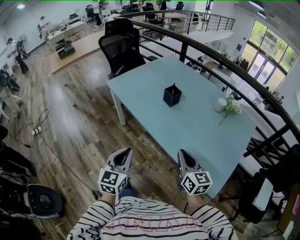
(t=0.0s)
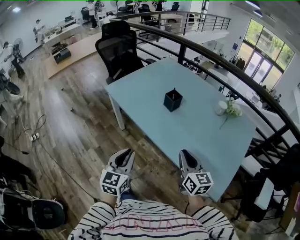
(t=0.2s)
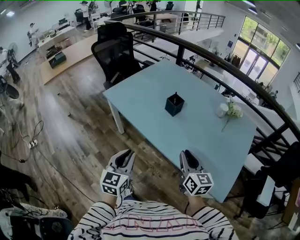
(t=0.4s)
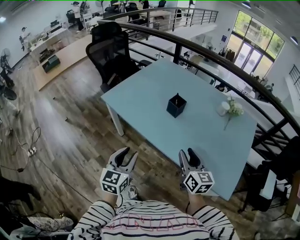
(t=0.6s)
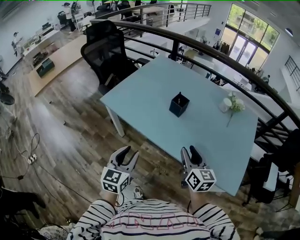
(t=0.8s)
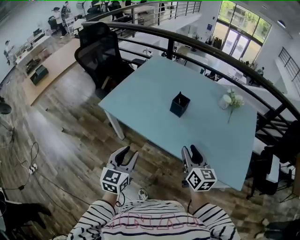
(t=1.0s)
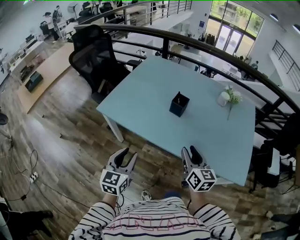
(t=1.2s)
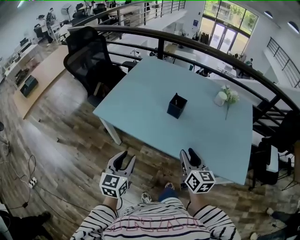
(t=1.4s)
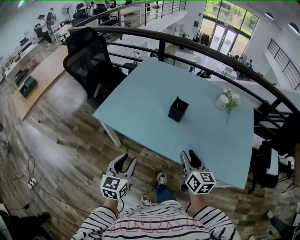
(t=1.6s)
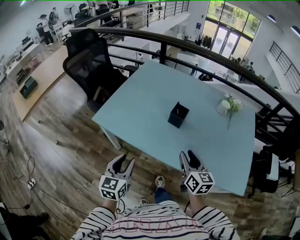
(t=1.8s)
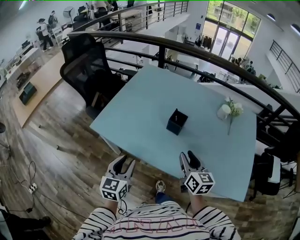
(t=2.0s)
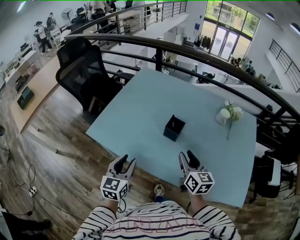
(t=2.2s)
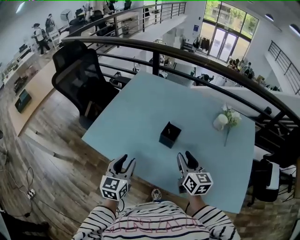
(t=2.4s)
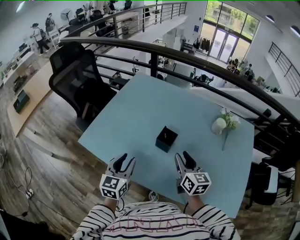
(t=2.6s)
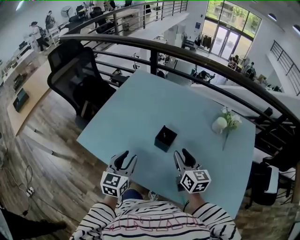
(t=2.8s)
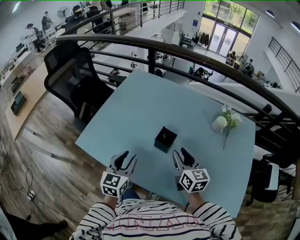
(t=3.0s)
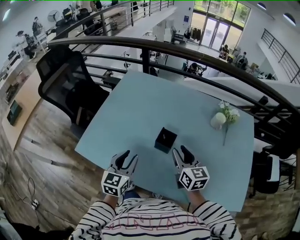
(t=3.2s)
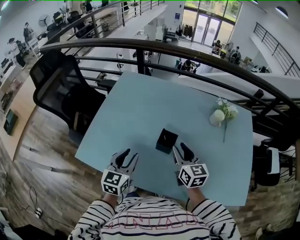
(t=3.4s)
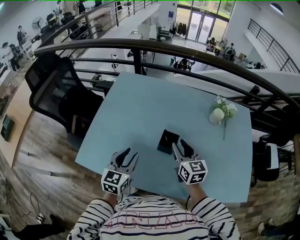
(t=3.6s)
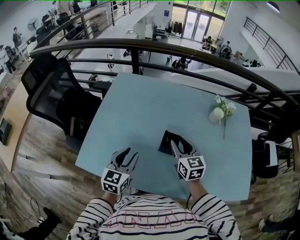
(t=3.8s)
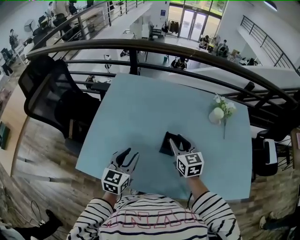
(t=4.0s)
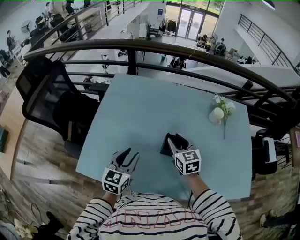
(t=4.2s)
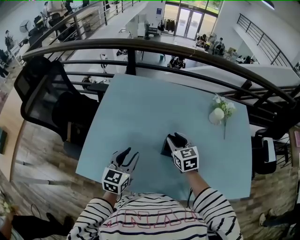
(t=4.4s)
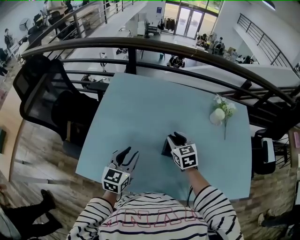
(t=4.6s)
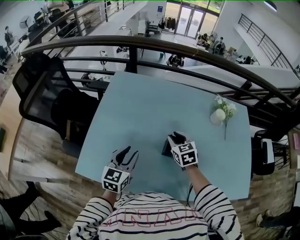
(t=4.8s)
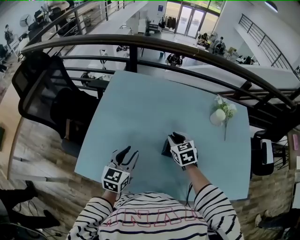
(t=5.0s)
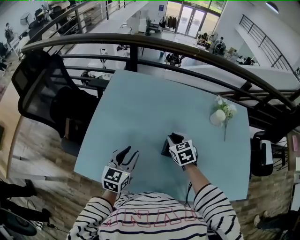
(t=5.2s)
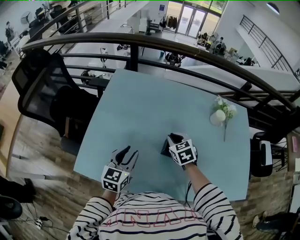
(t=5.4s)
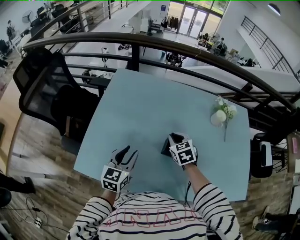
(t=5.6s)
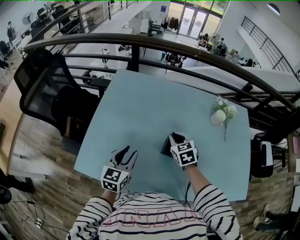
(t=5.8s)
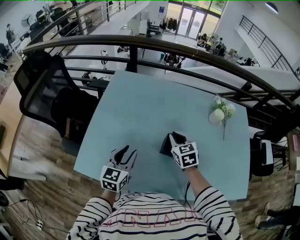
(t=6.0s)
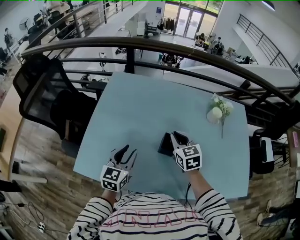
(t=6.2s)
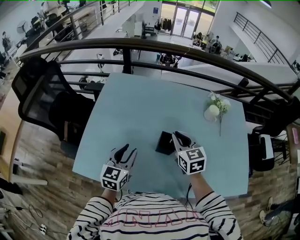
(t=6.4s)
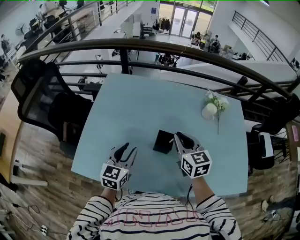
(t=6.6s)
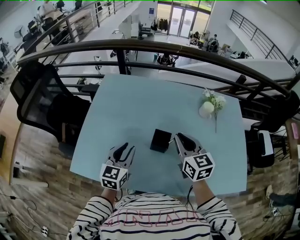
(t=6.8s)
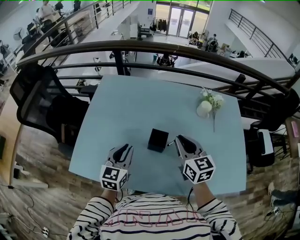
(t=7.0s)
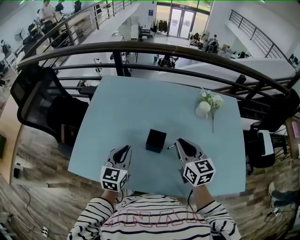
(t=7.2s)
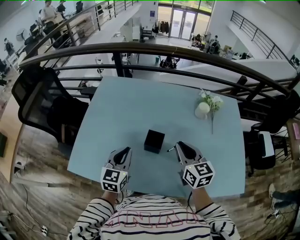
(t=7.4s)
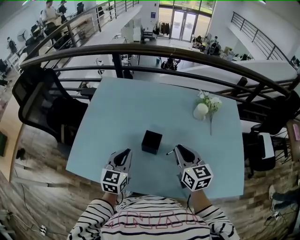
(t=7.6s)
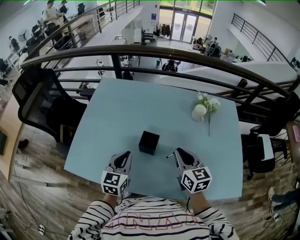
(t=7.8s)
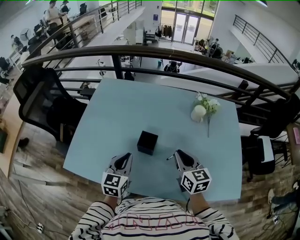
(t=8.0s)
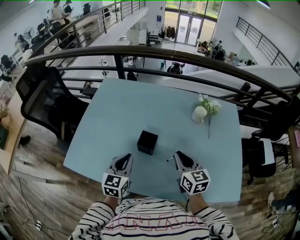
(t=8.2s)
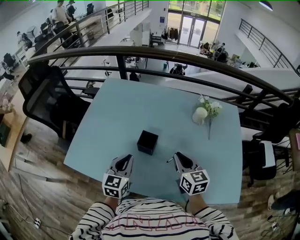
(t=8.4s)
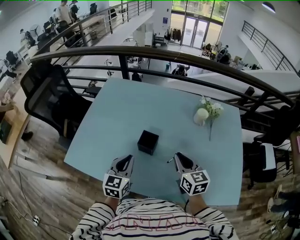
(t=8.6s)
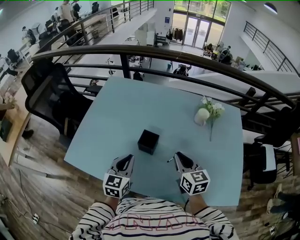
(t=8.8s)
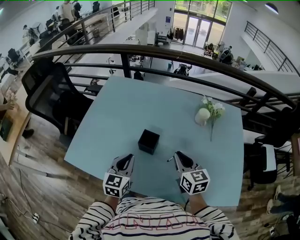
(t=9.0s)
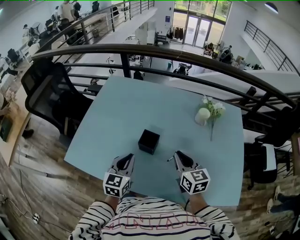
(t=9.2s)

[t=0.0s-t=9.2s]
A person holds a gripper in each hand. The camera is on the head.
t=0.0s to t=1.6s: Both grippers travel together to the left and forward, roughly 25 cm. The right gripper turns by roughly 30 degrees, and opens, while the left gripper changes its angle by about 20 degrees, and opens.
t=1.6s to t=3.0s: Both grippers travel together forward, about 25 cm.
t=3.0s to t=4.6s: The right gripper moves forward, to the left and downward, about 15 cm, and turns by about 30 degrees. The left gripper shifts about 15 cm forward and to the left.
t=4.6s to t=6.2s: The right gripper closes its fingers.
t=6.2s to t=7.6s: The left gripper travels to the right by roughly 10 cm, and closes its fingers; the right gripper heads to the right and backward, covering roughly 15 cm.
t=7.6s to t=9.2s: The left gripper ends up approximately 5 cm from where it was.

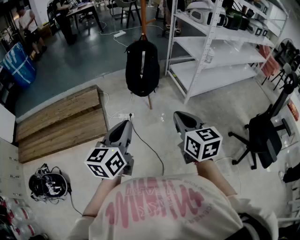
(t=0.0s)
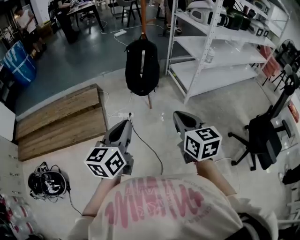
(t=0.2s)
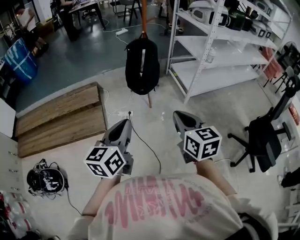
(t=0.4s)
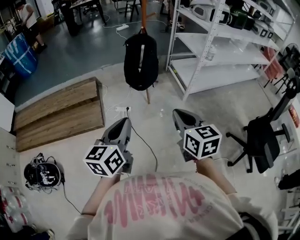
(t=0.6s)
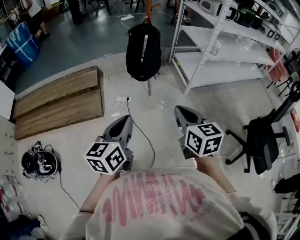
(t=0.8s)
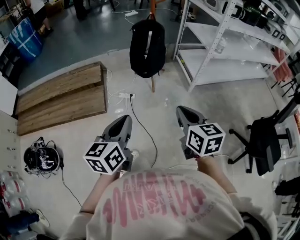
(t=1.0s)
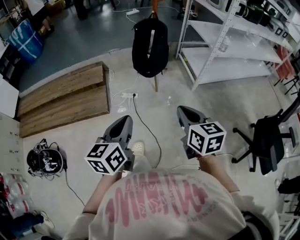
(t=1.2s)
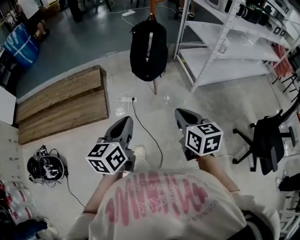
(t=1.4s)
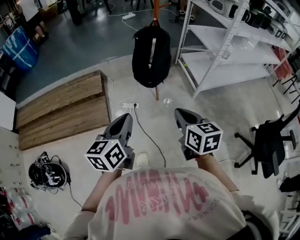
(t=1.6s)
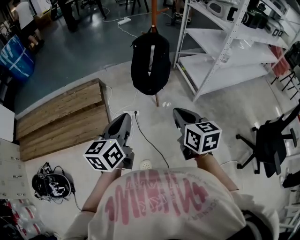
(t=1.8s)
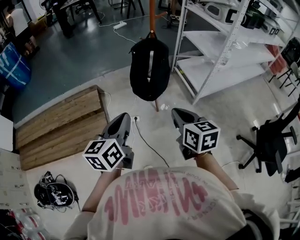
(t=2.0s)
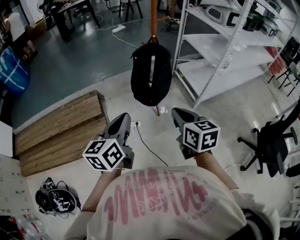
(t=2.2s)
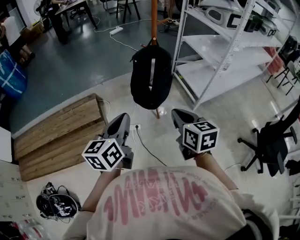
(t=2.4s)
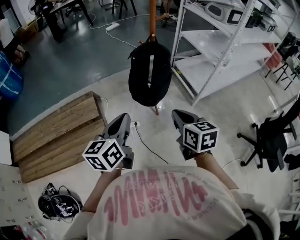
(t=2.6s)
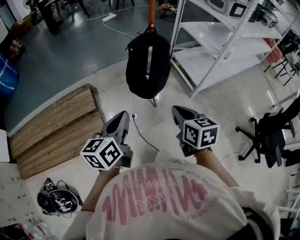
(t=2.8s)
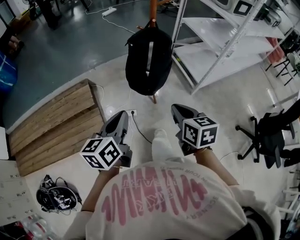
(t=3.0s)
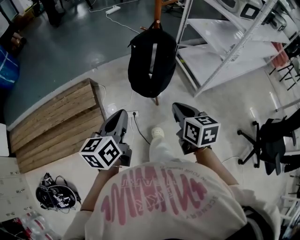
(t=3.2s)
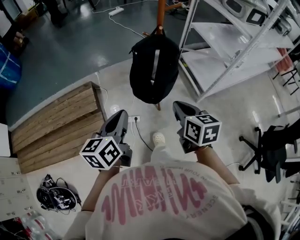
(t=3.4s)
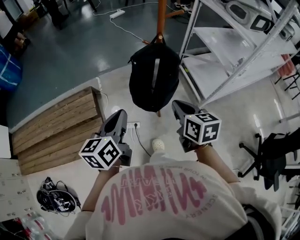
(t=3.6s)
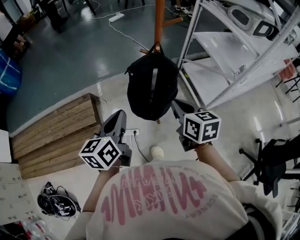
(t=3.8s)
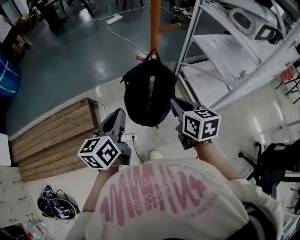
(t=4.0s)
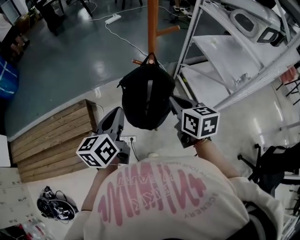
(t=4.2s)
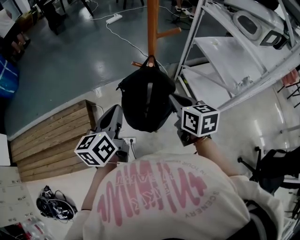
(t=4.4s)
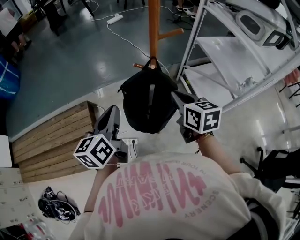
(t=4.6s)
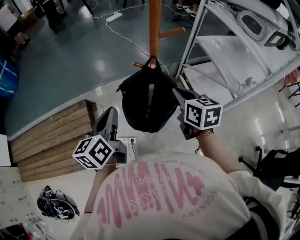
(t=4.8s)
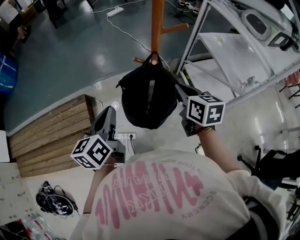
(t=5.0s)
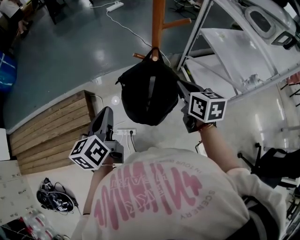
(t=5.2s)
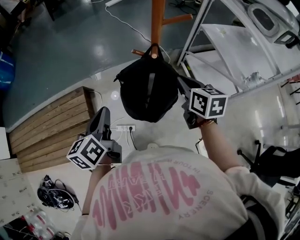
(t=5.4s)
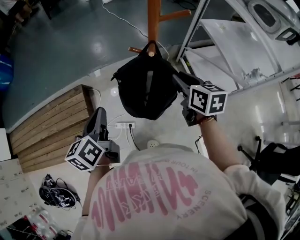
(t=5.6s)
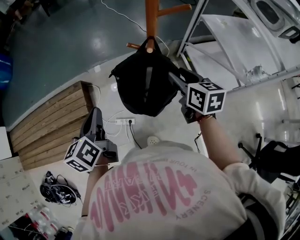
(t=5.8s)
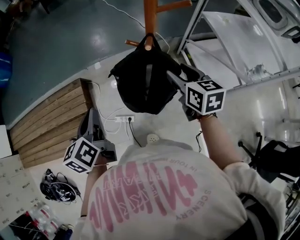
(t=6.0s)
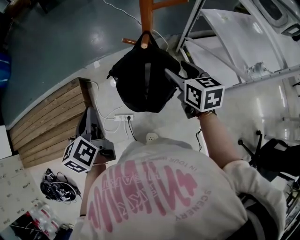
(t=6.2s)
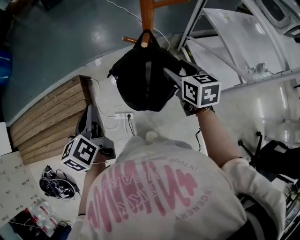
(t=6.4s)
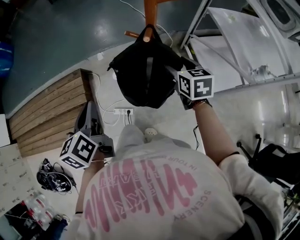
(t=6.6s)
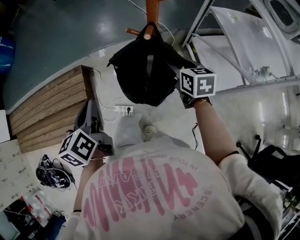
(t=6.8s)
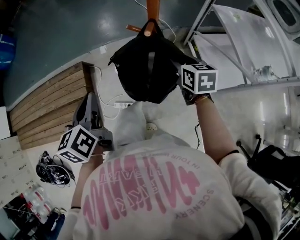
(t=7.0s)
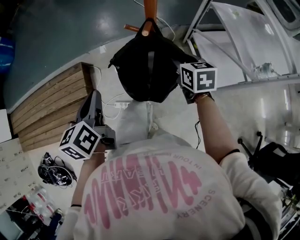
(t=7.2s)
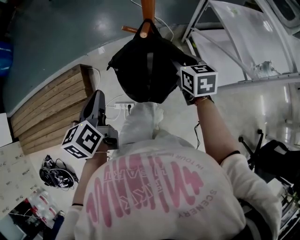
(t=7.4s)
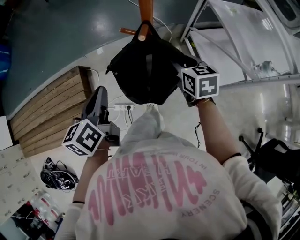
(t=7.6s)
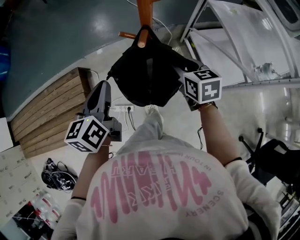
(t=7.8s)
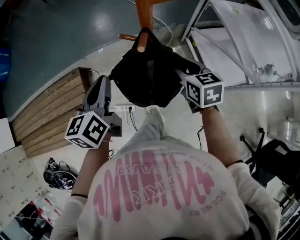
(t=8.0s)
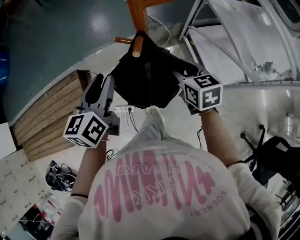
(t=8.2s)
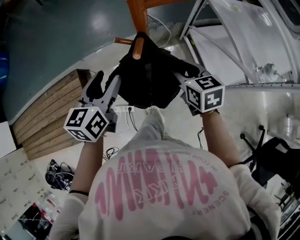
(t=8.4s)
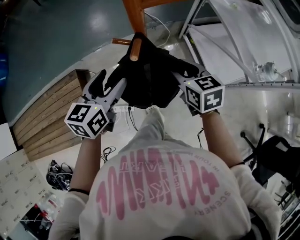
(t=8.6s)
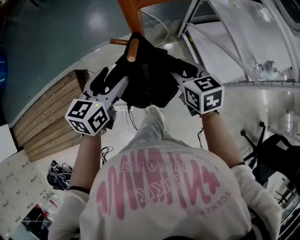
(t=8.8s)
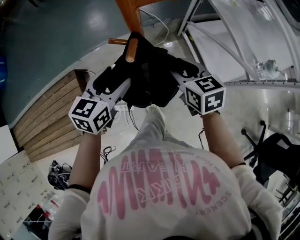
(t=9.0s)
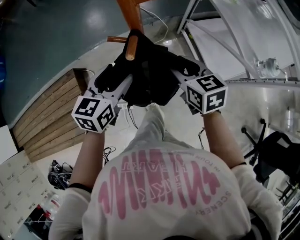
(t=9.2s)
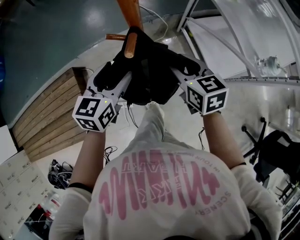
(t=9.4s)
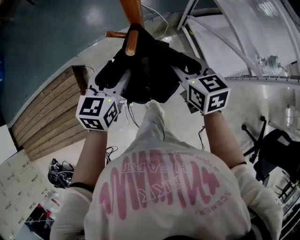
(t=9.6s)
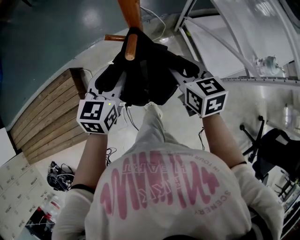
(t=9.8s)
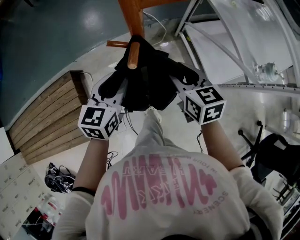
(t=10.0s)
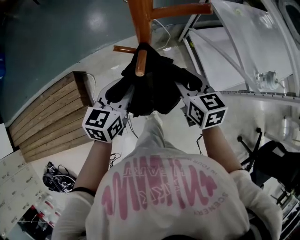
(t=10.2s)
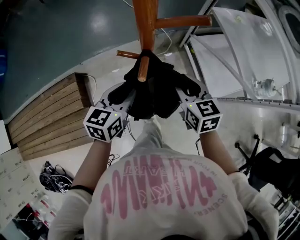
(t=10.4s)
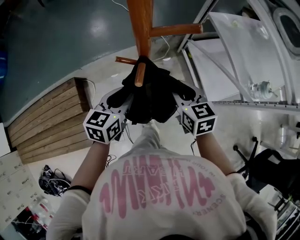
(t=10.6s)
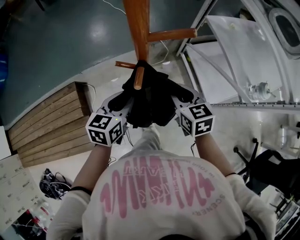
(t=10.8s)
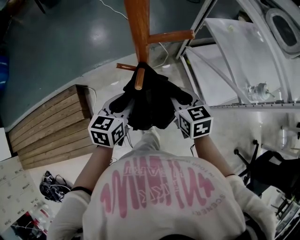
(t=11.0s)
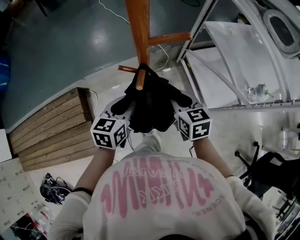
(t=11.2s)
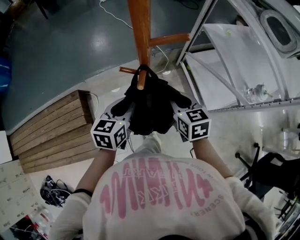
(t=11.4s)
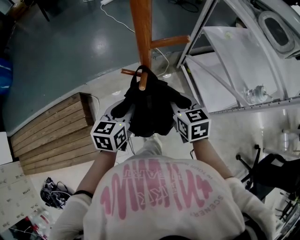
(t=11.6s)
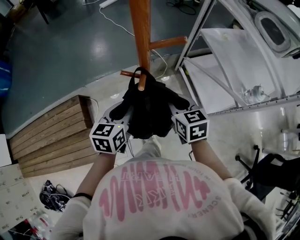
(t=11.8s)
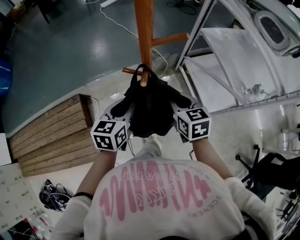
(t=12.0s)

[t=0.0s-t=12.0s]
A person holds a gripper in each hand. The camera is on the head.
t=0.0s to t=1.6s: The grippers both shift forward and downward by about 15 cm.
t=1.6s to t=3.0s: Both grippers move forward, roughly 20 cm.
t=3.0s to t=4.4s: Both grippers move forward, about 30 cm.
t=4.4s to t=6.0s: The left gripper heads to the left and downward, covering some 10 cm, and changes its angle by roughly 20 degrees; the right gripper goes some 10 cm forward and downward, and opens up.
t=6.0s to t=7.6s: The right gripper goes roughly 5 cm downward, and closes its fingers, while the left gripper shifts some 5 cm to the right.
t=7.6s to t=9.0s: The left gripper is displaced to the right and forward by some 15 cm, changes its angle by approximately 40 degrees, and opens up.
t=9.0s to t=10.4s: The left gripper closes.
t=10.4s to t=12.0s: The grippers make only small movements.

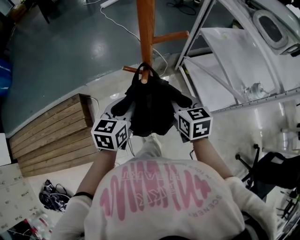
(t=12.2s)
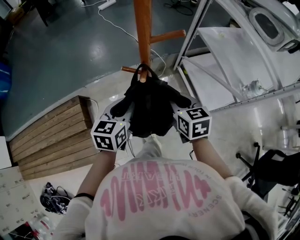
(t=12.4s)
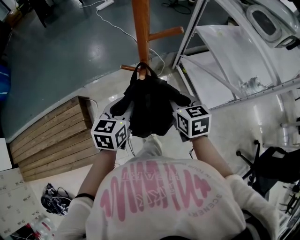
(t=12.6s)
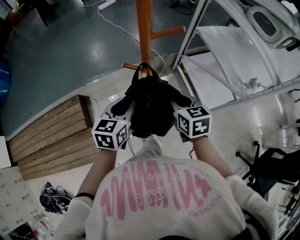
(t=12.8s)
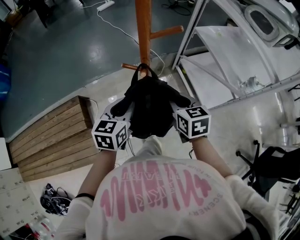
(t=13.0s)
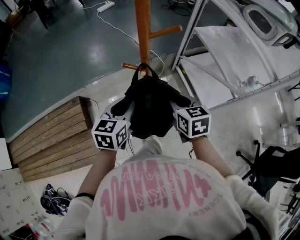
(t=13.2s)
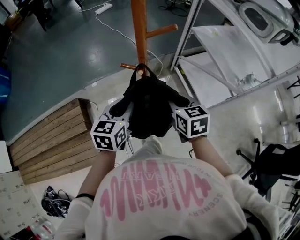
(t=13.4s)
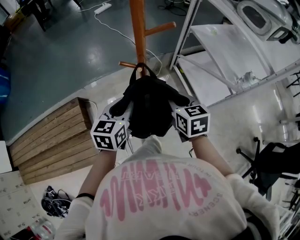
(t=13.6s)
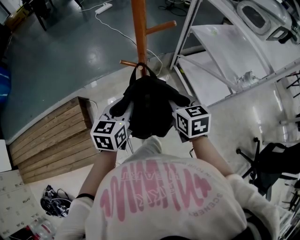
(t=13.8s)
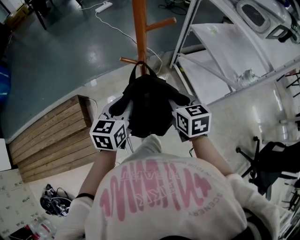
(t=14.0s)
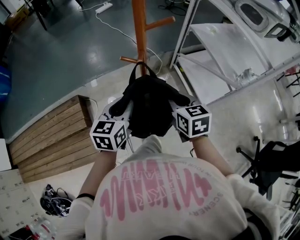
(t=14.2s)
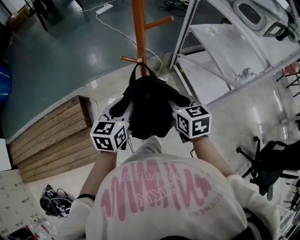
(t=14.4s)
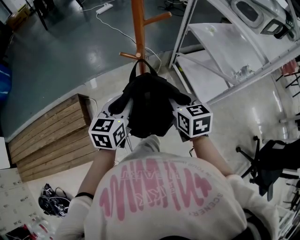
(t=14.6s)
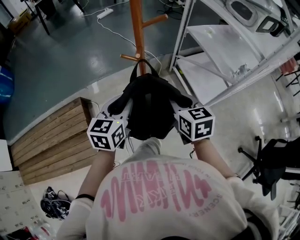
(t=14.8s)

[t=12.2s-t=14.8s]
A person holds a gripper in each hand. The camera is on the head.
t=12.2s to t=13.4s: The grippers move only a little.
t=13.4s to t=14.8s: Both grippers travel together backward, about 5 cm.
